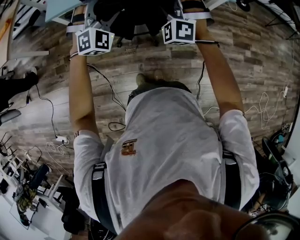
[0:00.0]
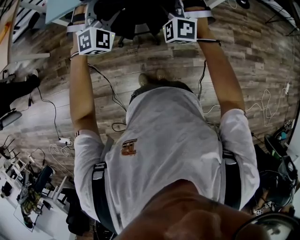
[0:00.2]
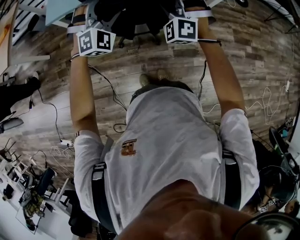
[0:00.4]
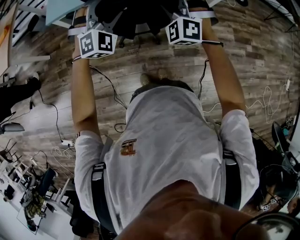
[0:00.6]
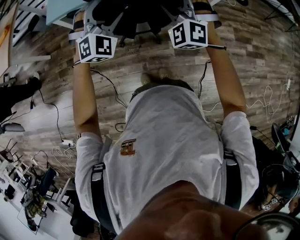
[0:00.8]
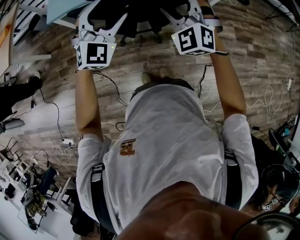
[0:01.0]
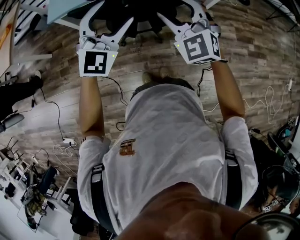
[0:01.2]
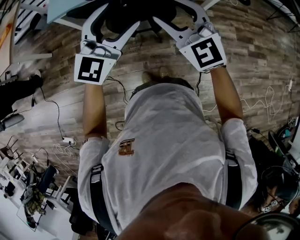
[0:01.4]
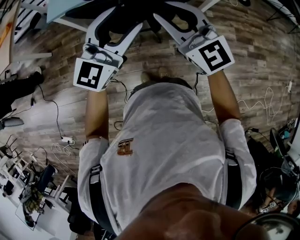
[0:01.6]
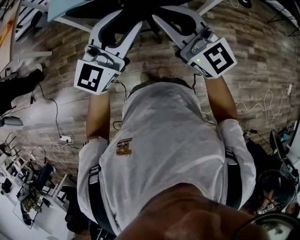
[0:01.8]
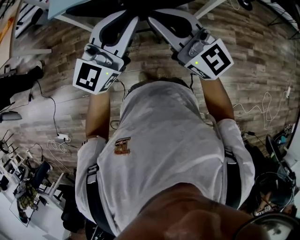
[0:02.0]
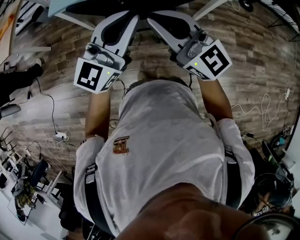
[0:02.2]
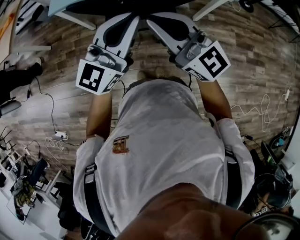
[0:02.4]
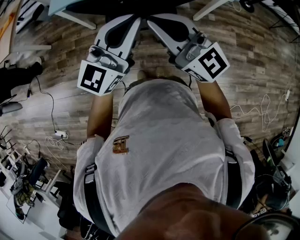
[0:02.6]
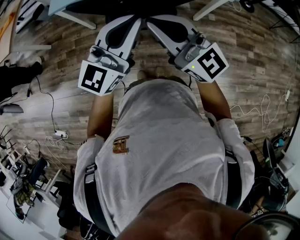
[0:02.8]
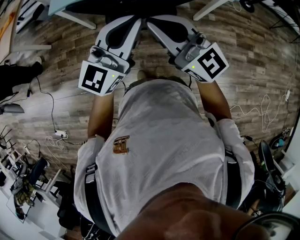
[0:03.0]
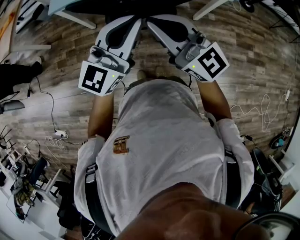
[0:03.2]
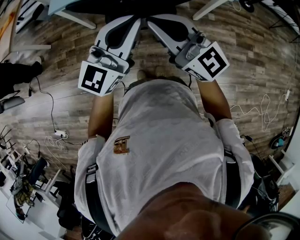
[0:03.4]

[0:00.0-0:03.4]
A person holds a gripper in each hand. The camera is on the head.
0.0 to 1.6 s: The grippers both shift backward and upward by about 15 cm. The left gripper twists about 50 degrees counterclockwise, seen from behind. Meanwhile the right gripper rotates around the line of its fingers by roughly 60 degrees, clockwise from behind, and closes.
1.6 to 3.4 s: The left gripper closes its fingers.

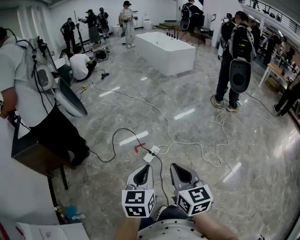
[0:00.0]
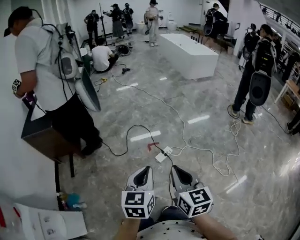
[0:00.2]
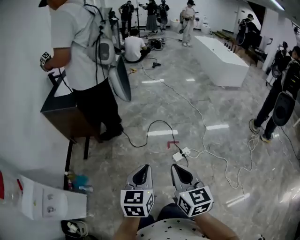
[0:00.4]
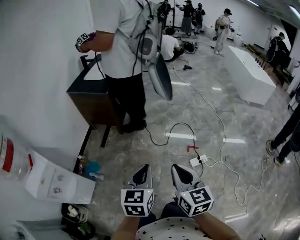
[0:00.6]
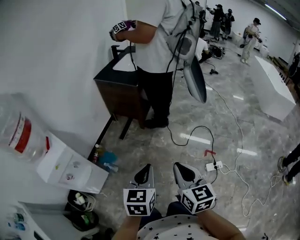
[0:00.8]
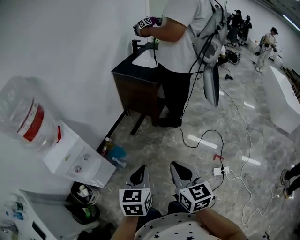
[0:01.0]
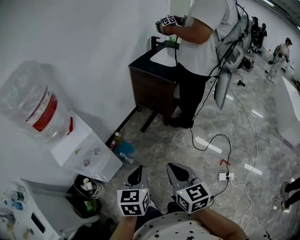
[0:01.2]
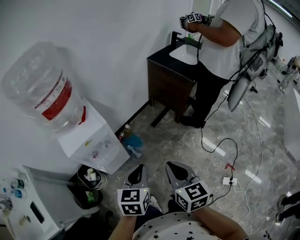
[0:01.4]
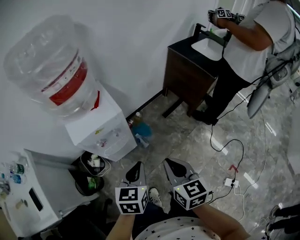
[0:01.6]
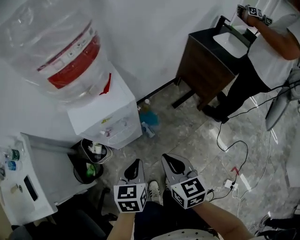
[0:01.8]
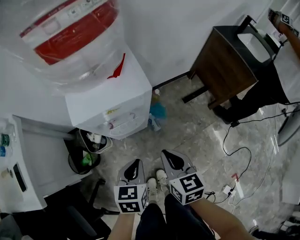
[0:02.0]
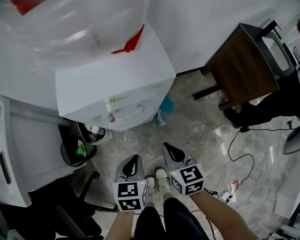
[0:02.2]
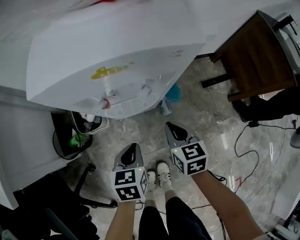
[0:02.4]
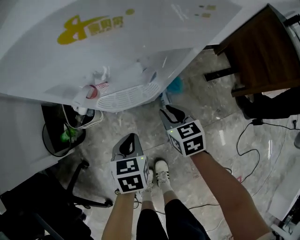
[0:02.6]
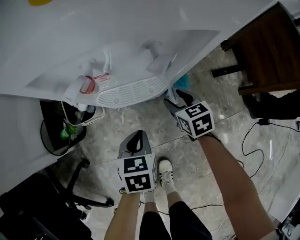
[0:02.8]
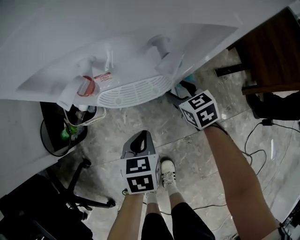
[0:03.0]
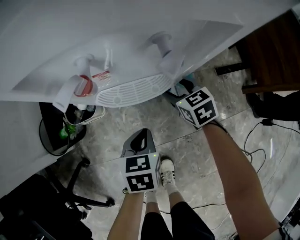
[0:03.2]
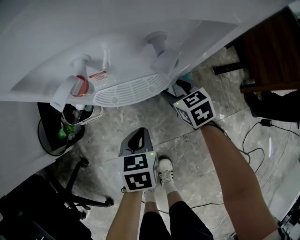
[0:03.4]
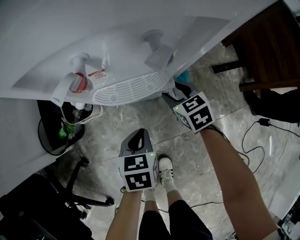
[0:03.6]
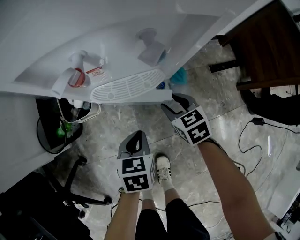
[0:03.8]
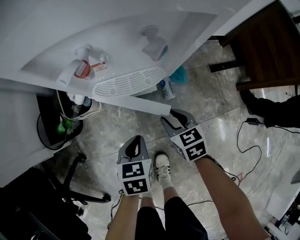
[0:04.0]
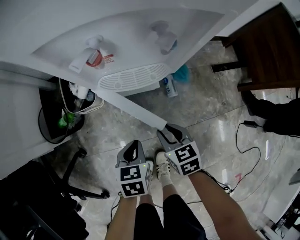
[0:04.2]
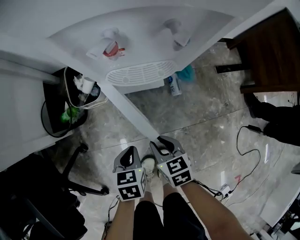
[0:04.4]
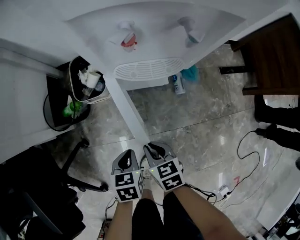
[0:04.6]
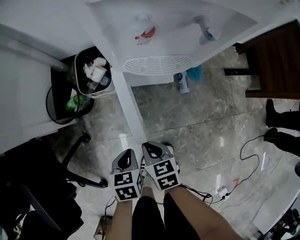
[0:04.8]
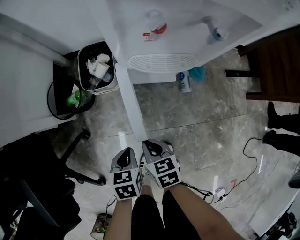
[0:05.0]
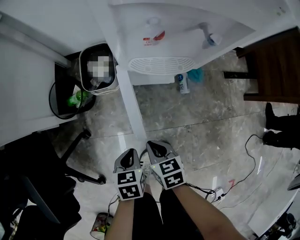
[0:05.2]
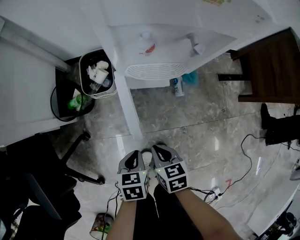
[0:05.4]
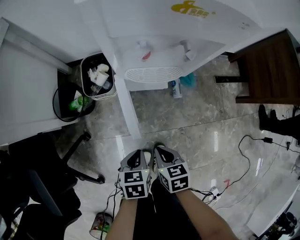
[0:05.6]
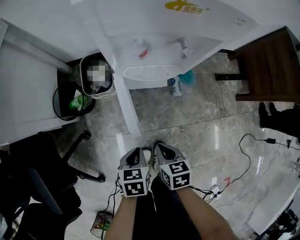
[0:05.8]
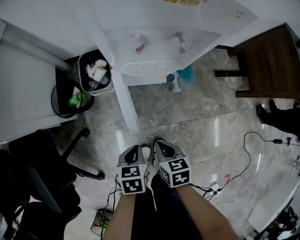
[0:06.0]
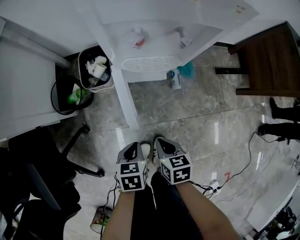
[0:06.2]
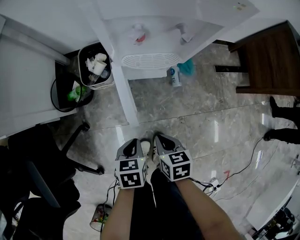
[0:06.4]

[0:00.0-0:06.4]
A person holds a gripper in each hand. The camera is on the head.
0.0 to 1.6 s: The pair of grippers is taken about 70 cm. The left gripper changes its angle by approximately 80 degrees. Meanwhile the right gripper rotates approximately 80 degrees.
1.6 to 3.2 s: Both grippers travel together downward, some 50 cm. The left gripper rotates roughly 40 degrees. Meanwhile the right gripper changes its angle by about 50 degrees, and opens.
3.2 to 4.8 s: The right gripper heads backward and to the left, covering roughly 35 cm, and closes. The left gripper is displaced backward and to the left by about 20 cm.
4.8 to 6.4 s: The left gripper travels upward by some 5 cm, while the right gripper goes approximately 10 cm to the right and upward.

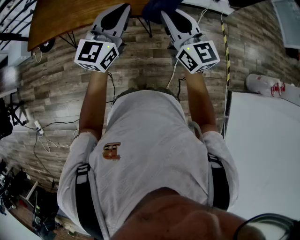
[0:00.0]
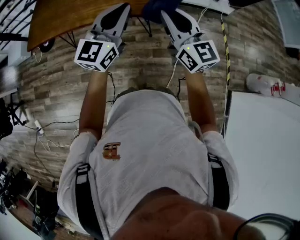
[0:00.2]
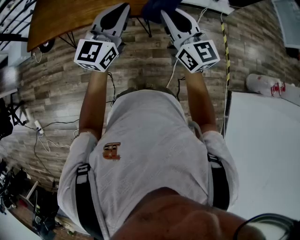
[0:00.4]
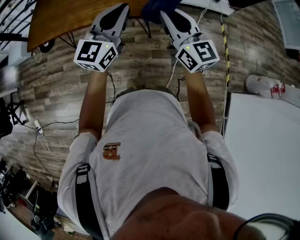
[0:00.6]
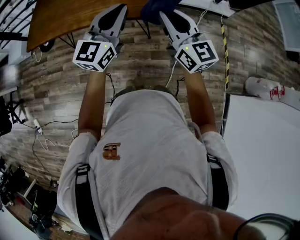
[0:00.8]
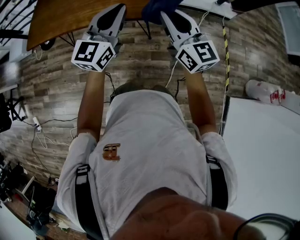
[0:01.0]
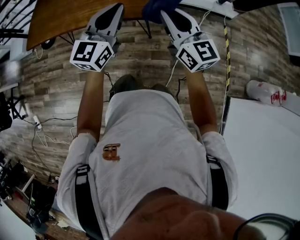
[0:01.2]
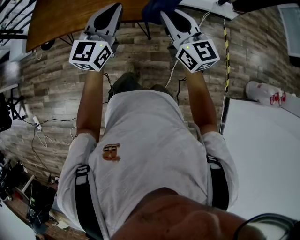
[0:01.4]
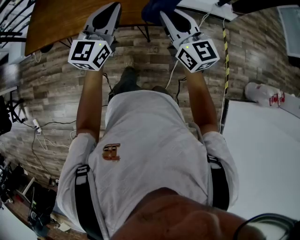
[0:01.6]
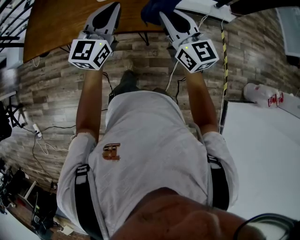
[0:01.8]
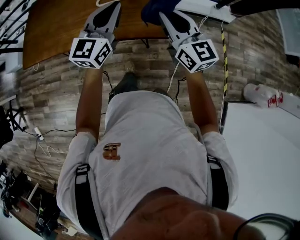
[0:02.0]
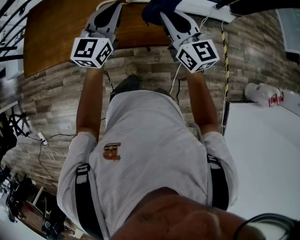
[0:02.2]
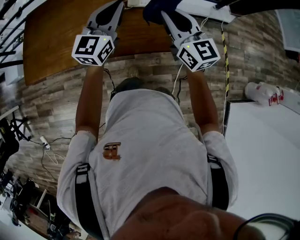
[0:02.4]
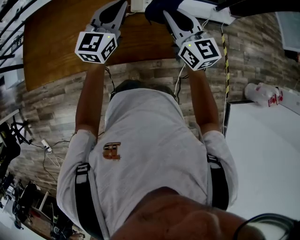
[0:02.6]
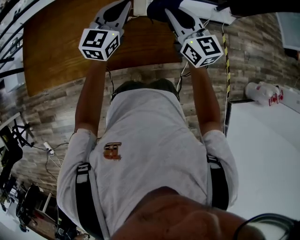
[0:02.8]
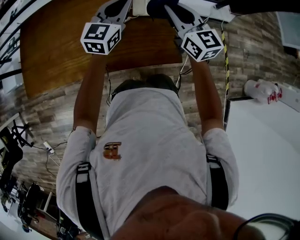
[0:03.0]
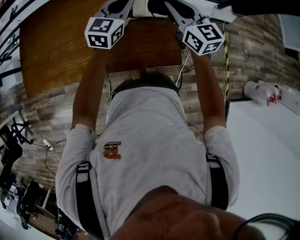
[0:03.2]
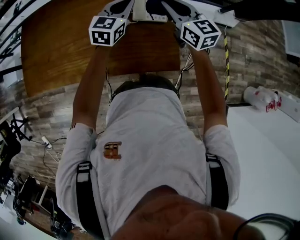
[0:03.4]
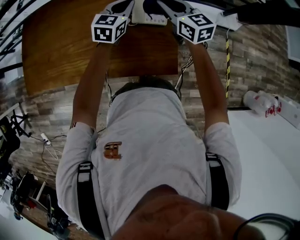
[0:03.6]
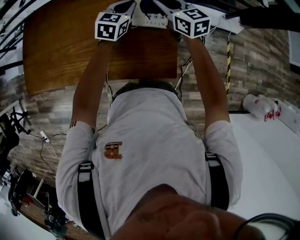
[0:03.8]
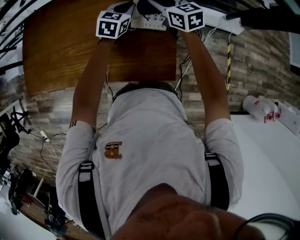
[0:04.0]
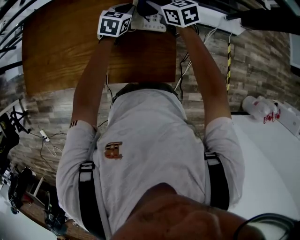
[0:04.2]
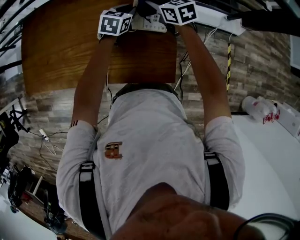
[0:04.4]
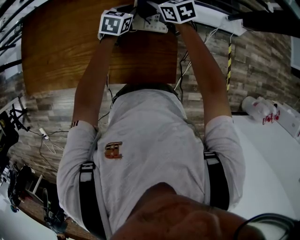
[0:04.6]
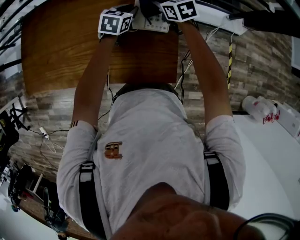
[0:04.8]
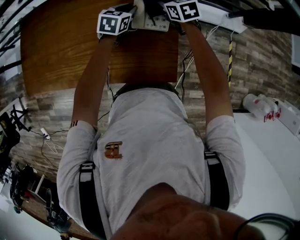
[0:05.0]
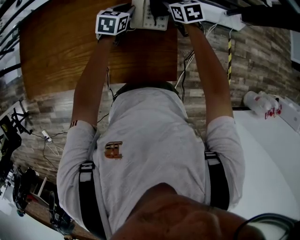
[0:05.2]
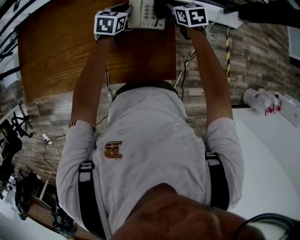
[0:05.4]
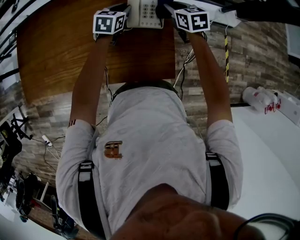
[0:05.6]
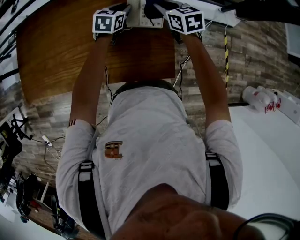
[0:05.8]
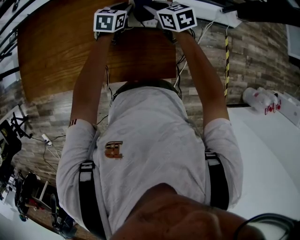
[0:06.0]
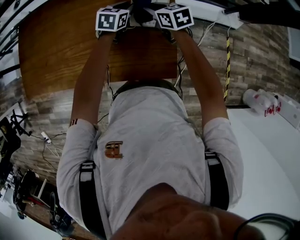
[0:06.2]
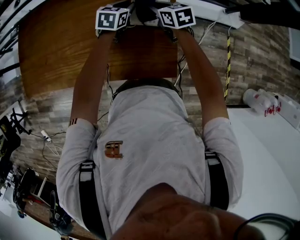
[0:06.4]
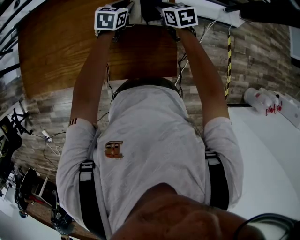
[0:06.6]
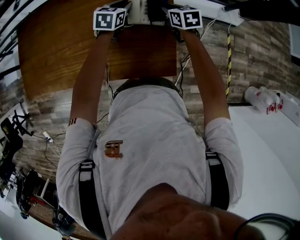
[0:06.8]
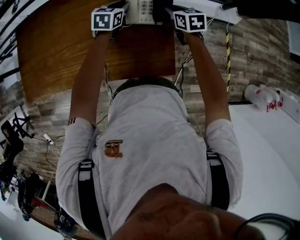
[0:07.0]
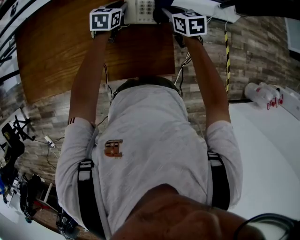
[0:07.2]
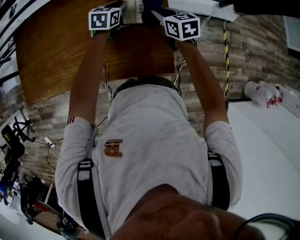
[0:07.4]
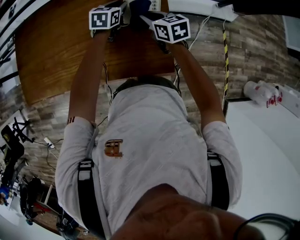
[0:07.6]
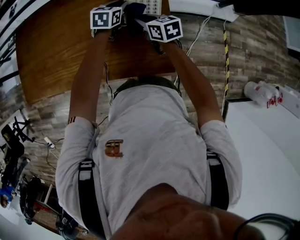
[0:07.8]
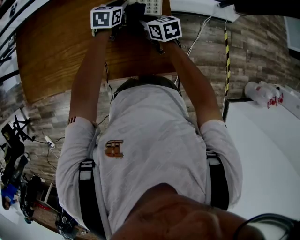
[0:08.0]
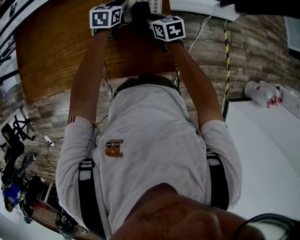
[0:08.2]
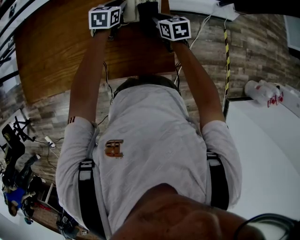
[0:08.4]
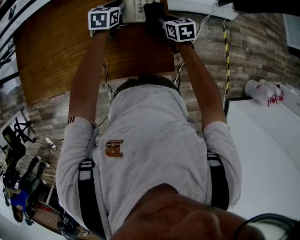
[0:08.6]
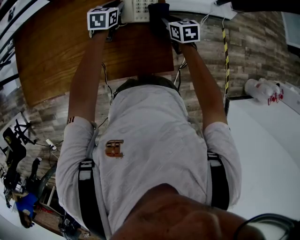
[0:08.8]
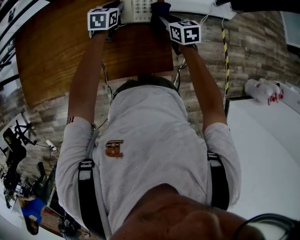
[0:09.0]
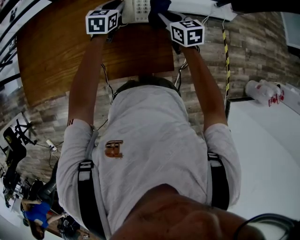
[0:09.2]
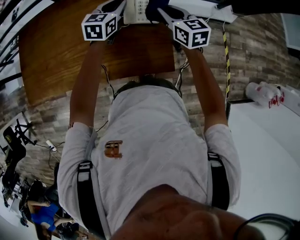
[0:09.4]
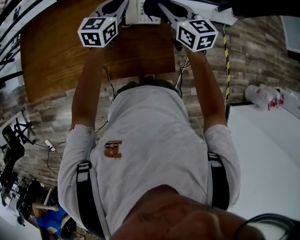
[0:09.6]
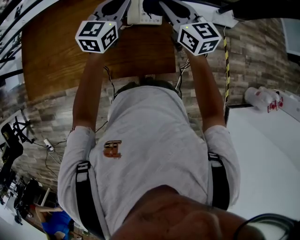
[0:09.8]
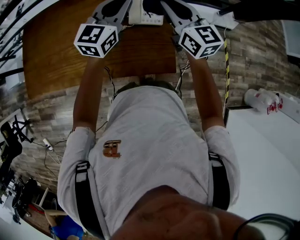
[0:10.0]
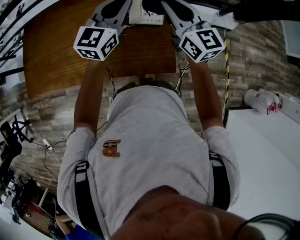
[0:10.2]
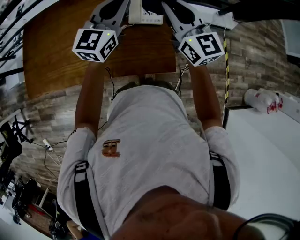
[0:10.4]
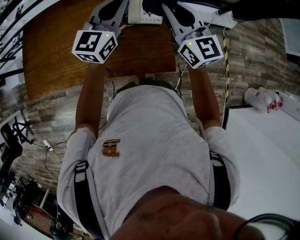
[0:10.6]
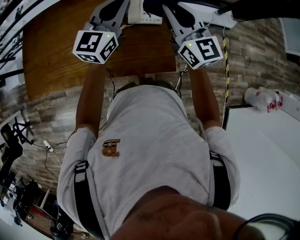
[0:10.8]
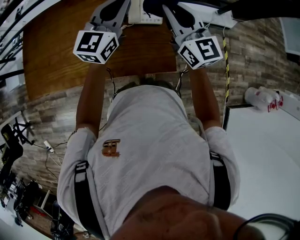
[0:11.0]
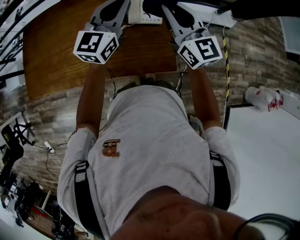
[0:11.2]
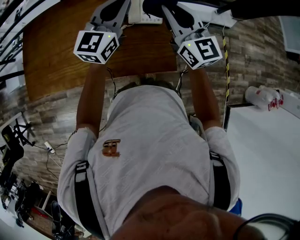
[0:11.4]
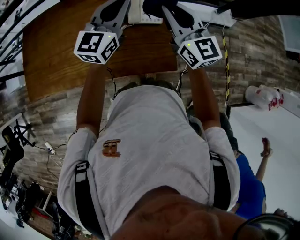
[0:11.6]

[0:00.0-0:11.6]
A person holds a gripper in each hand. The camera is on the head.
0.0 to 1.4 s: The right gripper is displaced forward and to the right by approximately 10 cm, while the left gripper goes some 5 cm forward.
1.4 to 2.8 s: Both grippers move forward, approximately 35 cm.
2.8 to 4.4 s: The right gripper travels forward and downward by about 25 cm, and rotates some 40 degrees. The left gripper goes approximately 25 cm downward and forward, and tilts its fingers about 40 degrees downward.
5.8 to 7.2 s: The right gripper ends up some 5 cm from where it was.
7.2 to 8.8 s: The right gripper goes to the left and returns, roughly 10 cm each way.
8.8 to 10.2 s: The right gripper goes about 25 cm upward, and tilts its fingers some 40 degrees upward; the left gripper moves upward and backward, roughly 25 cm, and angles its fingers upward, by approximately 40 degrees.
10.2 to 11.6 s: The grippers move only a little.

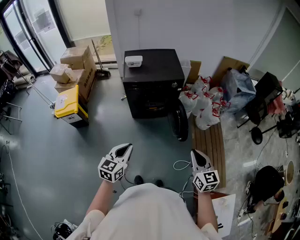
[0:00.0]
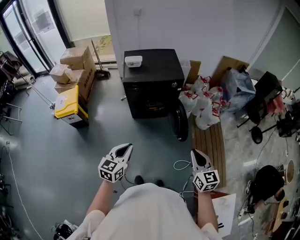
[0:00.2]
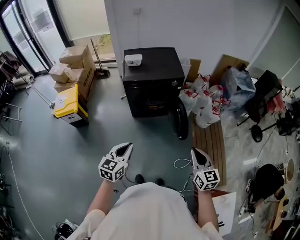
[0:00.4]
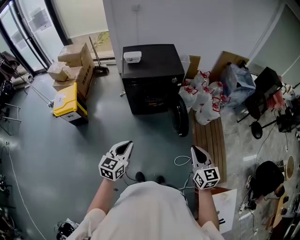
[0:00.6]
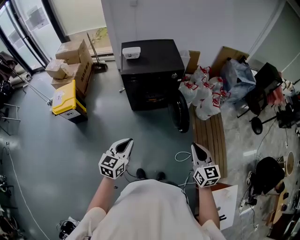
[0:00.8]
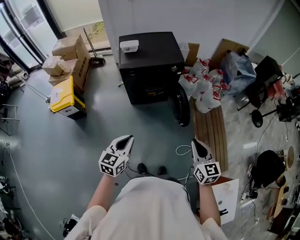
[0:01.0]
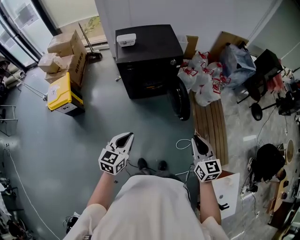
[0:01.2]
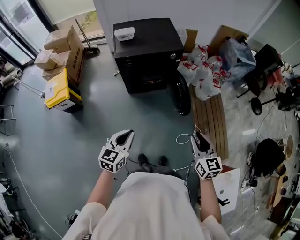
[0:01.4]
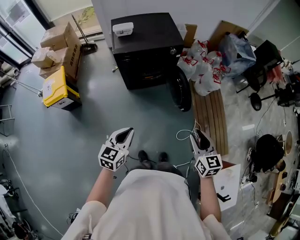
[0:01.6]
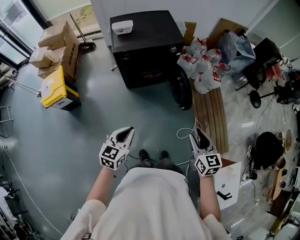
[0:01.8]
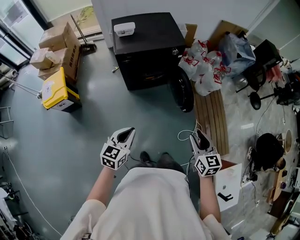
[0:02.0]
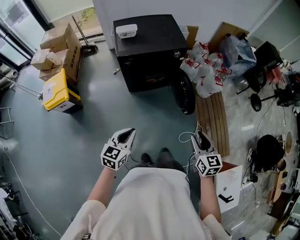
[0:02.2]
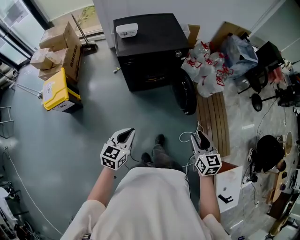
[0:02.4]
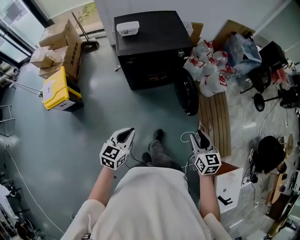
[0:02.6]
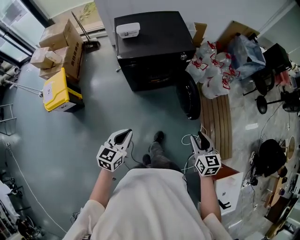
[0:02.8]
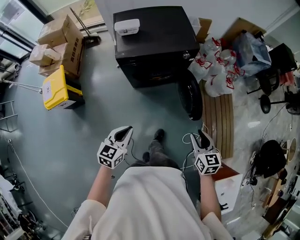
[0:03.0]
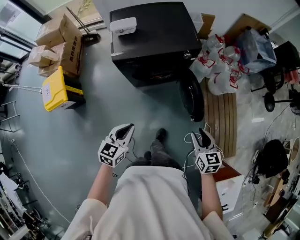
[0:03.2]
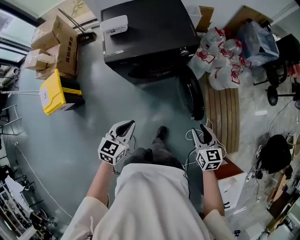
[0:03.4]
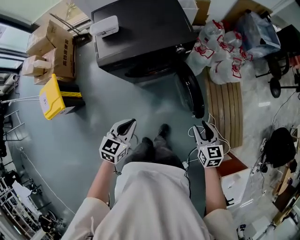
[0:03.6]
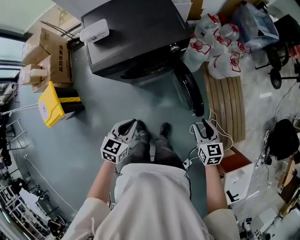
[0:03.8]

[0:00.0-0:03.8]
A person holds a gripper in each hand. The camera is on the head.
0.0 to 1.2 s: There are only small adjustments of the grippers.
1.2 to 2.6 s: The left gripper is displaced forward, to the left and downward by about 10 cm, while the right gripper heads downward, forward and to the left, covering approximately 15 cm, and opens up.
2.6 to 3.8 s: The right gripper heads forward and downward, covering about 25 cm. Meanwhile the left gripper travels forward by some 25 cm.
